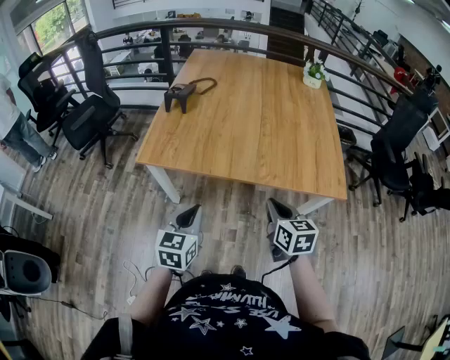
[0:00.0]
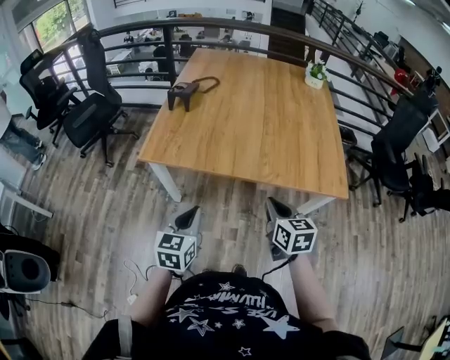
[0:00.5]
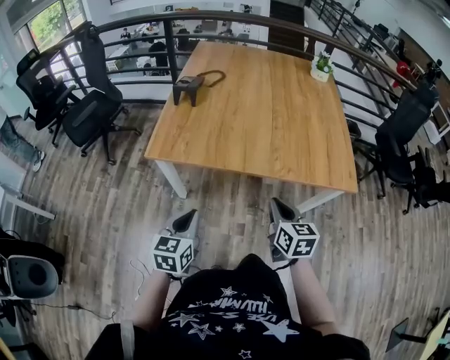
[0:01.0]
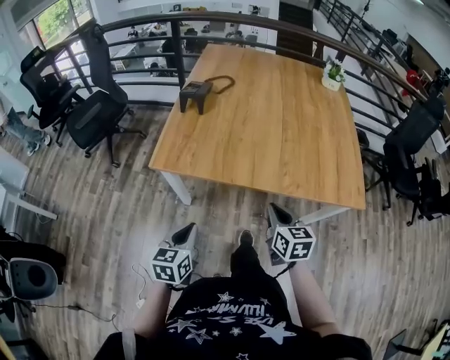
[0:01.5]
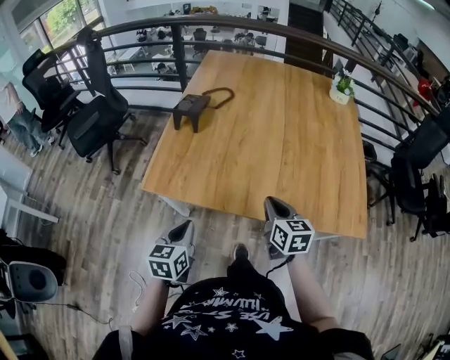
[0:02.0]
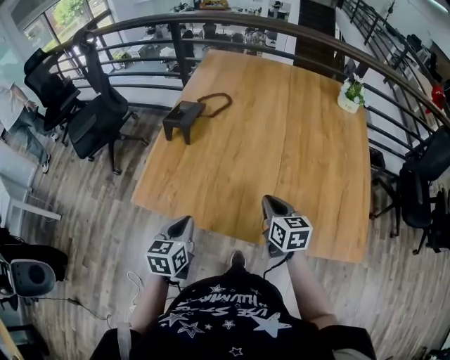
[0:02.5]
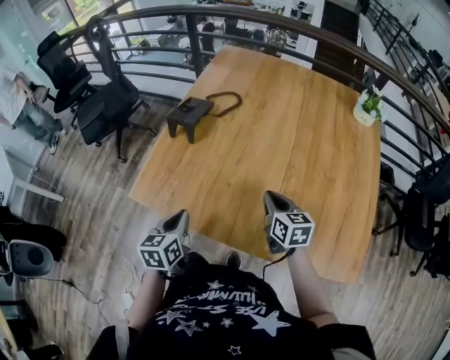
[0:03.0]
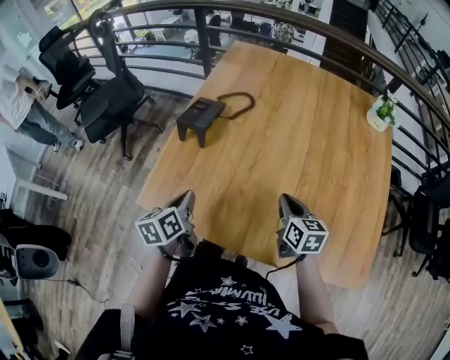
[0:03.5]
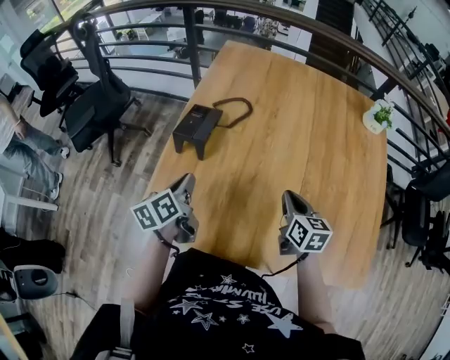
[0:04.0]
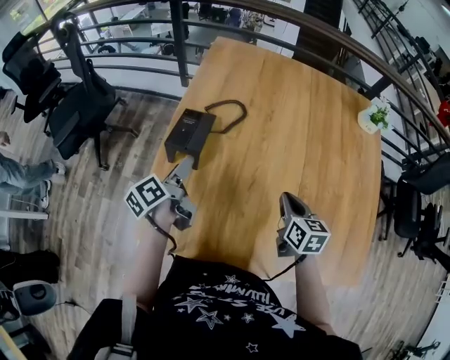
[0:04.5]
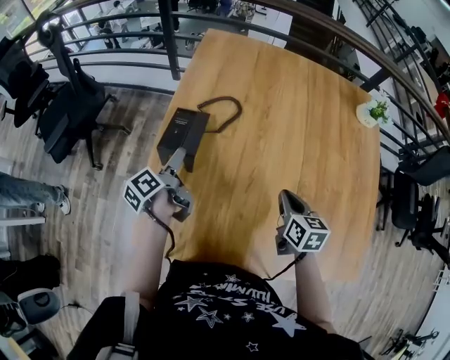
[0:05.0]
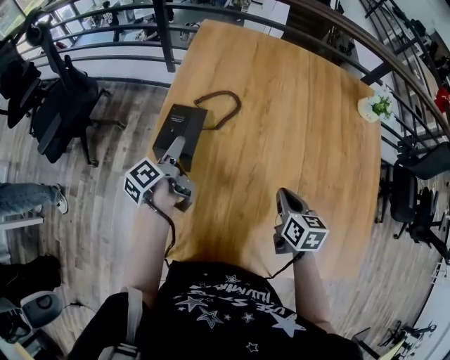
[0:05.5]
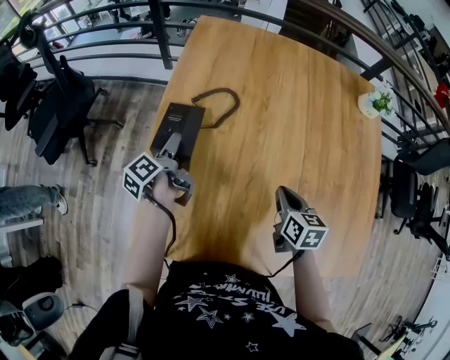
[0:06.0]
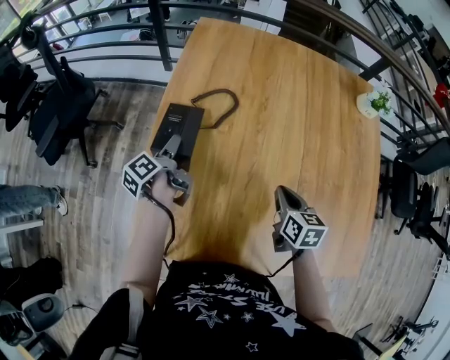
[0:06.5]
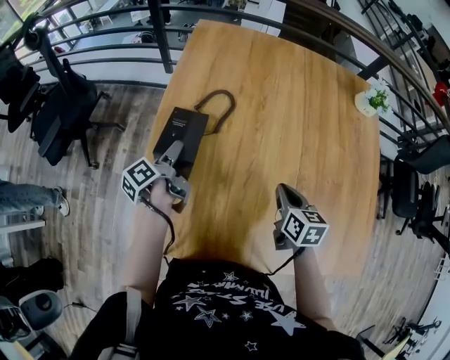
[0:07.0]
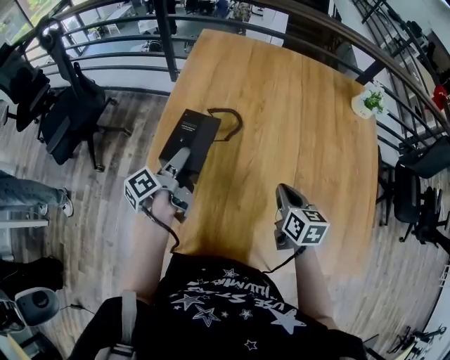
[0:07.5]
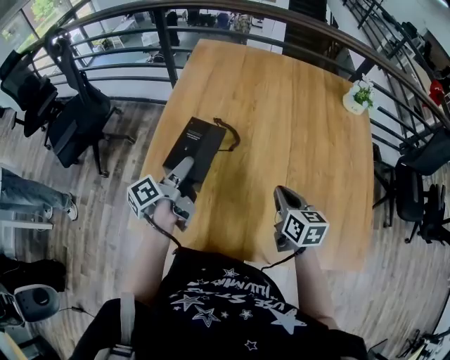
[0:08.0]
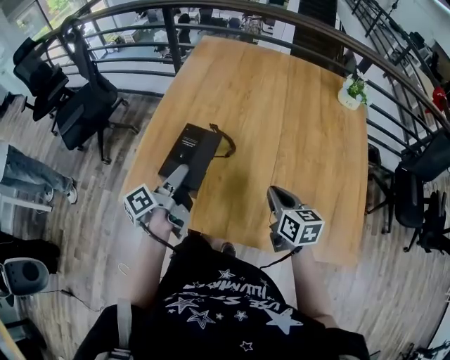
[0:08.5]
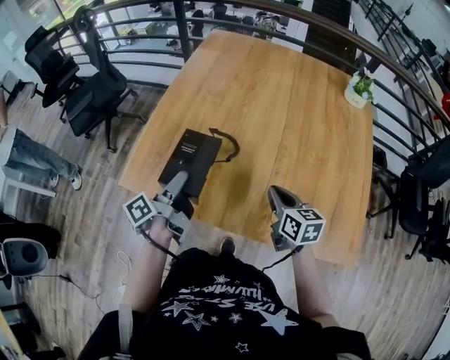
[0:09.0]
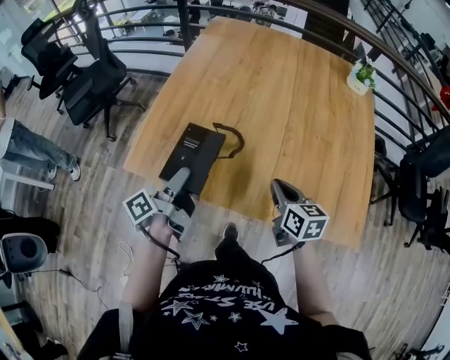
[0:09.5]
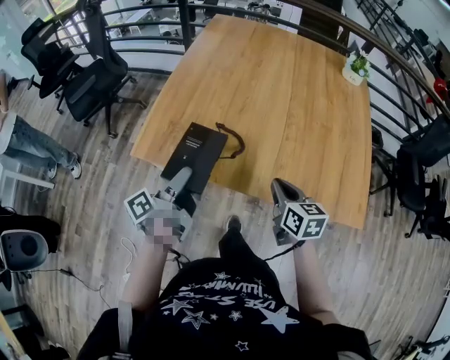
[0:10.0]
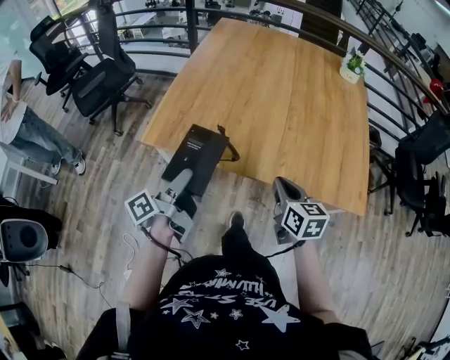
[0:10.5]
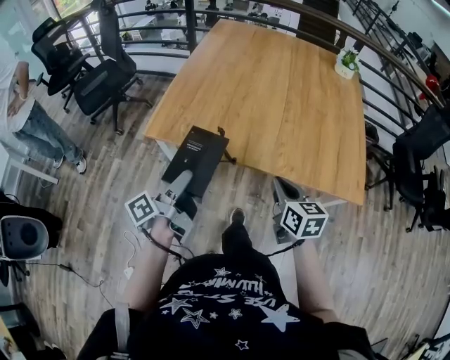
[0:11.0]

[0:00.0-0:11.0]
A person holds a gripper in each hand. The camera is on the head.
0.0 to 2.0 s: The right gripper travels forward by roughly 20 cm; the left gripper moves forward, to the left and downward, about 15 cm.
2.0 to 3.5 s: The grippers both shift forward by roughly 20 cm. The left gripper changes its angle by some 30 degrees.
3.5 to 5.5 s: The right gripper travels forward by approximately 10 cm, while the left gripper shifts some 25 cm forward, rotates approximately 40 degrees, and opens up.
5.5 to 7.5 s: The left gripper goes about 5 cm backward, and closes its fingers.
7.5 to 9.0 s: The left gripper is displaced backward by roughly 25 cm. Meanwhile the right gripper shifts approximately 15 cm backward.
9.0 to 11.0 s: Both grippers move backward, roughly 25 cm.

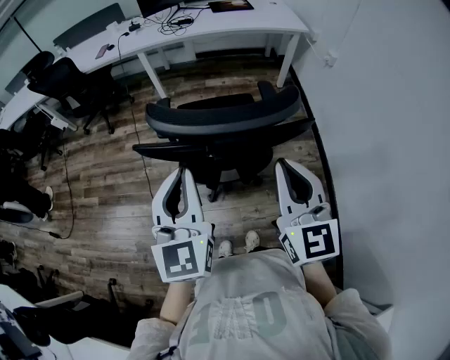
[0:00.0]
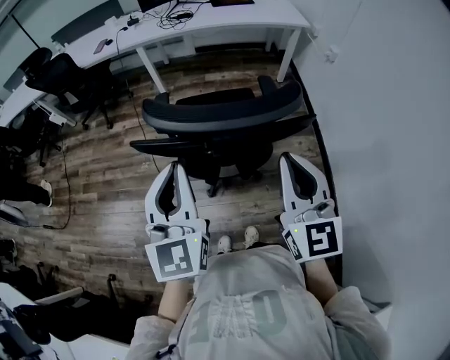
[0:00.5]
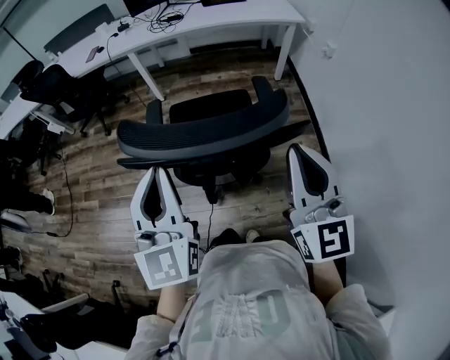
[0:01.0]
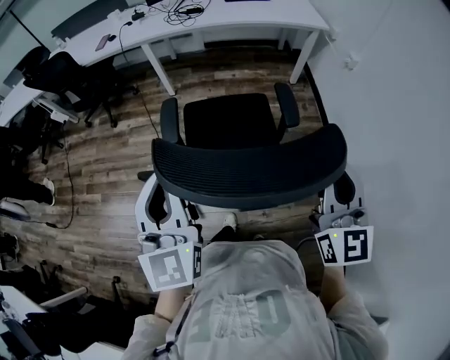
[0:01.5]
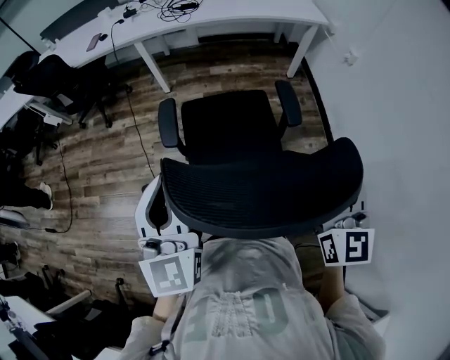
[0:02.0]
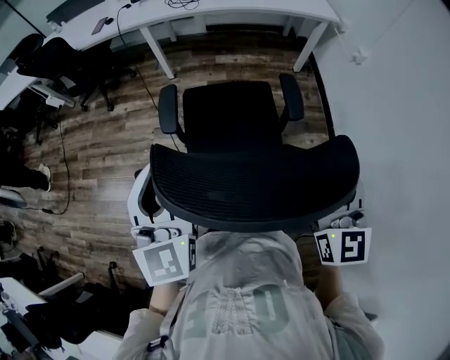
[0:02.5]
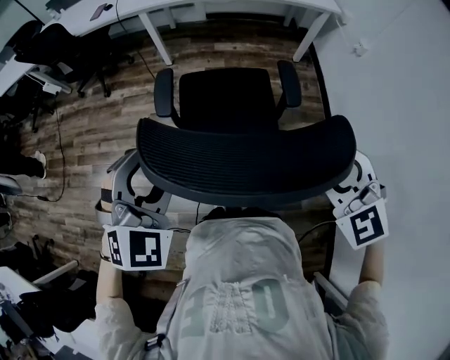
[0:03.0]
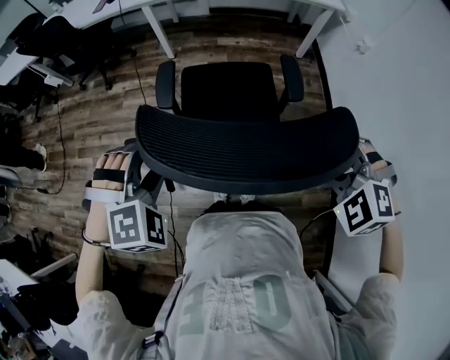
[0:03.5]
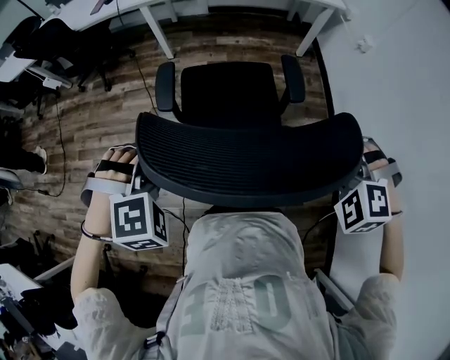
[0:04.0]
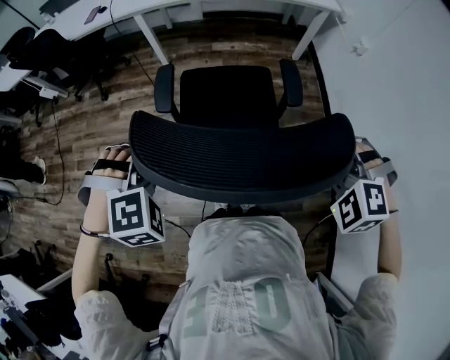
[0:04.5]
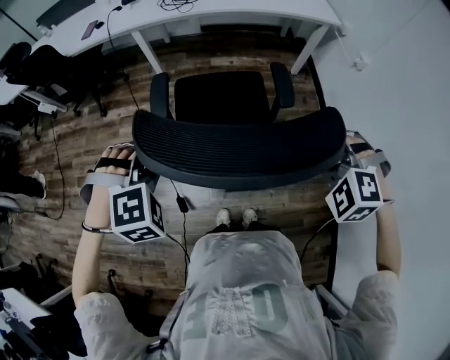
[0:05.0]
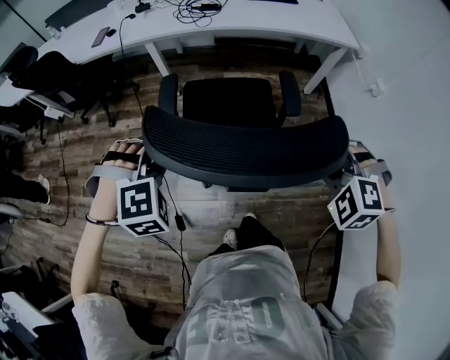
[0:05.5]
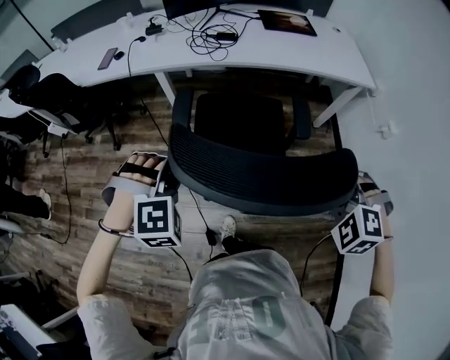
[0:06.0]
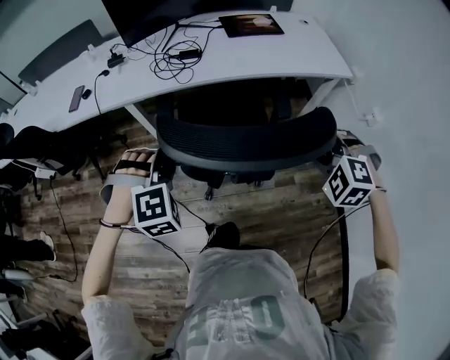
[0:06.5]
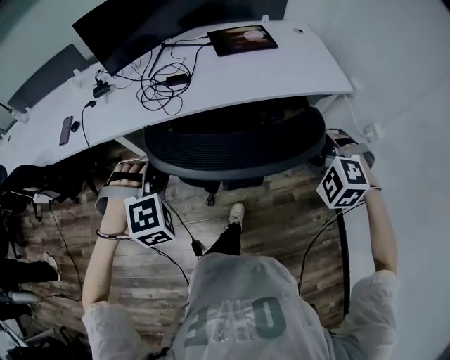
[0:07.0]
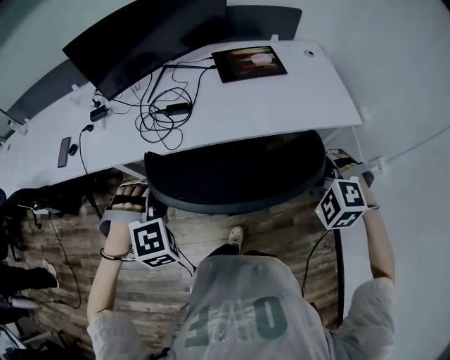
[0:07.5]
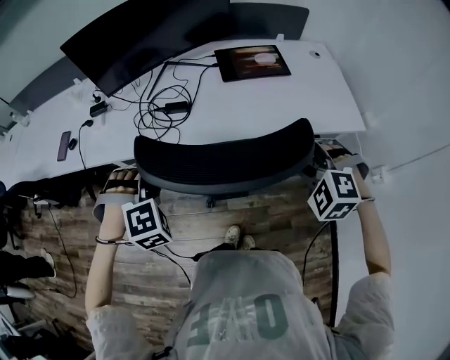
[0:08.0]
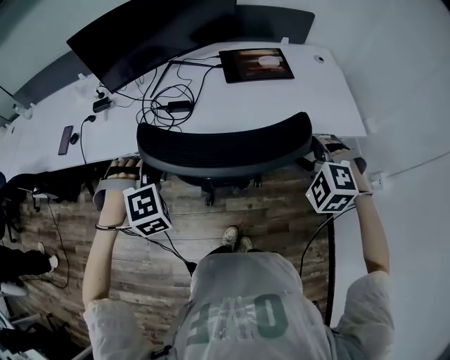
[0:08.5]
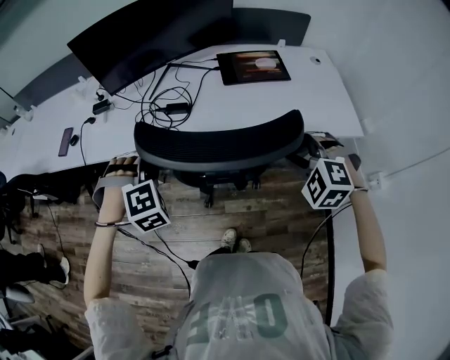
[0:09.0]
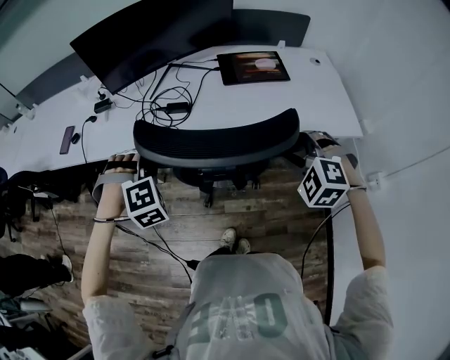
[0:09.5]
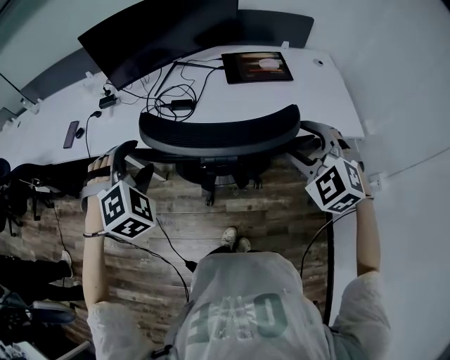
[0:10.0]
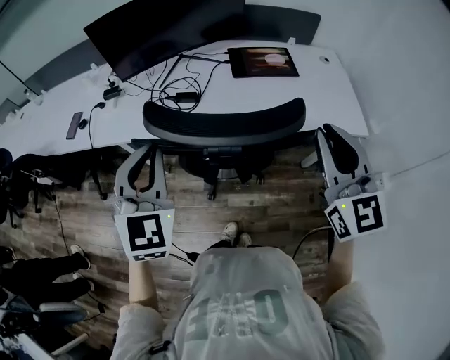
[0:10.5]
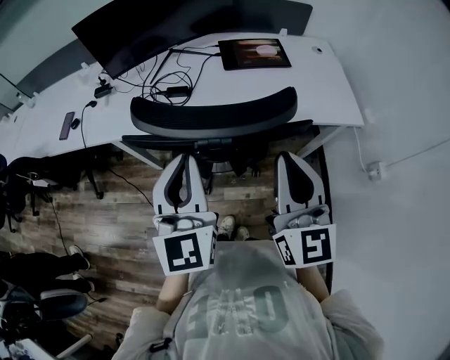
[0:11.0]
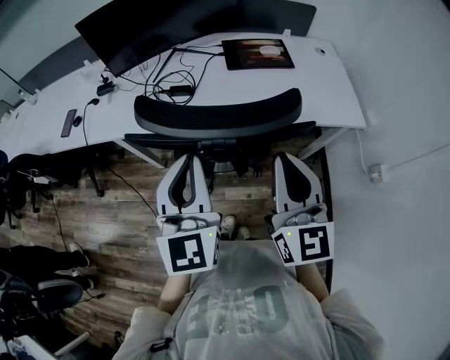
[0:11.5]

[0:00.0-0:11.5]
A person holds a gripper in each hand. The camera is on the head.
0.0 to 2.0 s: The left gripper goes about 15 cm forward and to the left; the right gripper moves forward and to the right, about 15 cm.
2.0 to 4.0 s: Both grippers travel together downward, some 10 cm. The right gripper tips its fingers downward by roughly 50 degrees, and opens. Meanwhile the left gripper angles its fingers downward, by about 60 degrees, and opens up.
4.0 to 6.0 s: Both grippers travel together forward, approximately 35 cm.
6.0 to 7.5 s: Both grippers travel together forward, about 35 cm.
7.5 to 9.5 s: Both grippers travel together forward, approximately 5 cm.
9.5 to 11.5 s: The right gripper moves upward, backward and to the left, approximately 20 cm, angles its fingers upward, by approximately 50 degrees, and closes. Meanwhile the left gripper travels upward, backward and to the right by about 20 cm, rotates around the line of its fingers by some 80 degrees, counterclockwise from behind, and closes up.

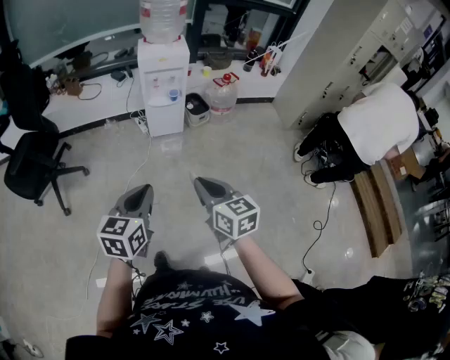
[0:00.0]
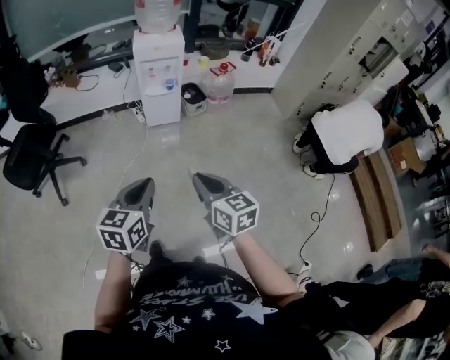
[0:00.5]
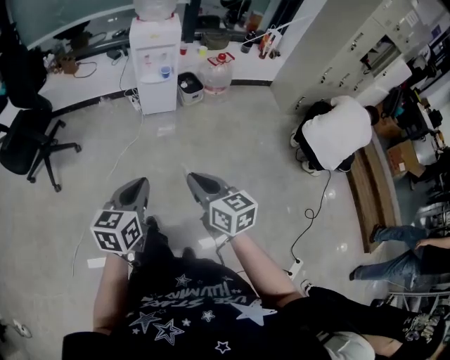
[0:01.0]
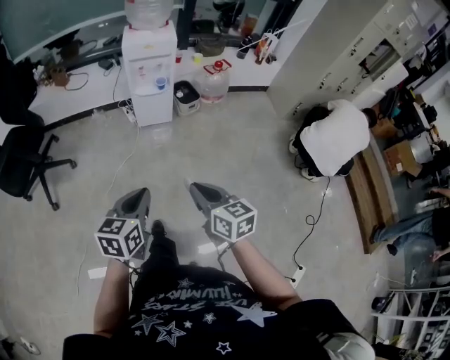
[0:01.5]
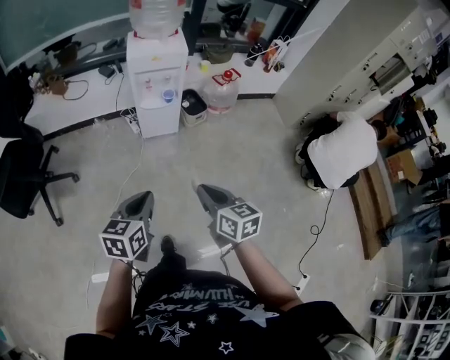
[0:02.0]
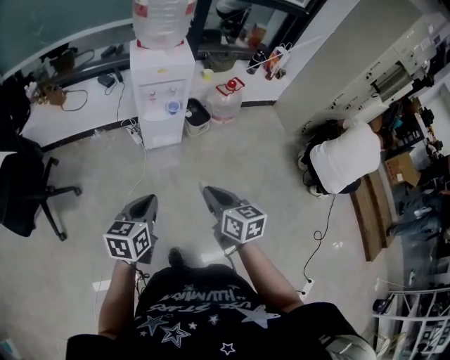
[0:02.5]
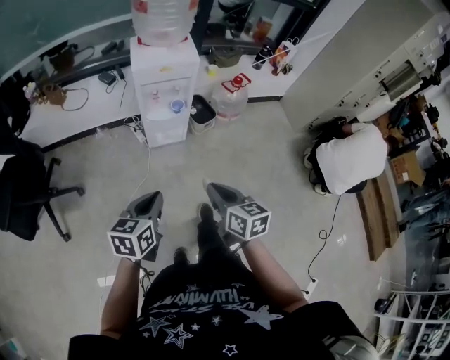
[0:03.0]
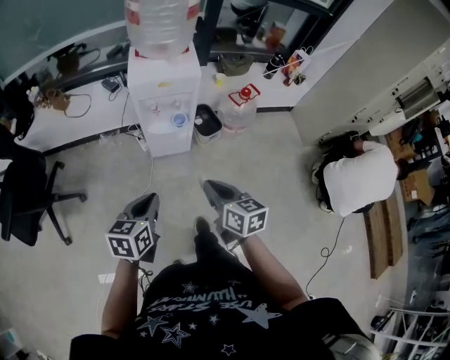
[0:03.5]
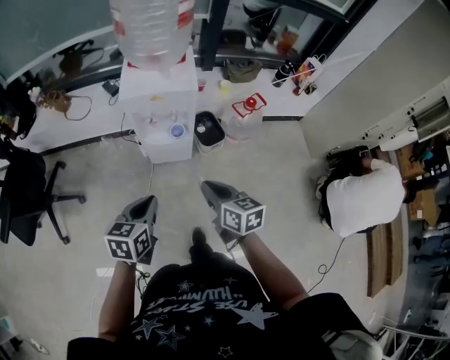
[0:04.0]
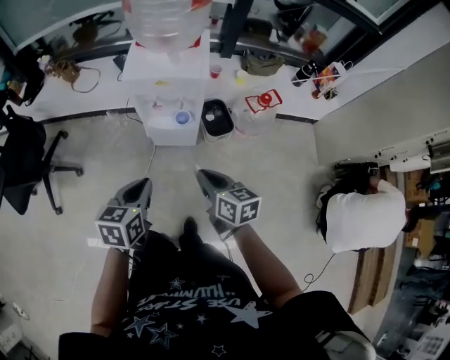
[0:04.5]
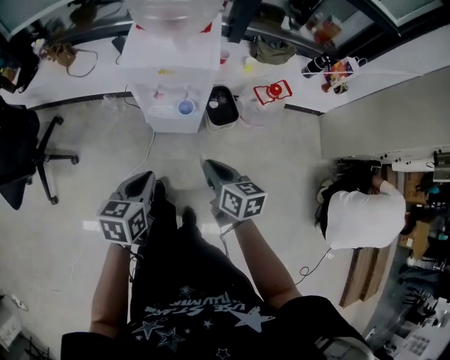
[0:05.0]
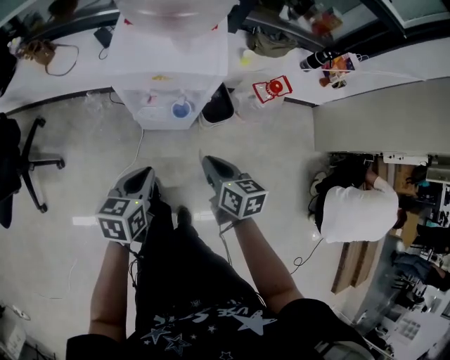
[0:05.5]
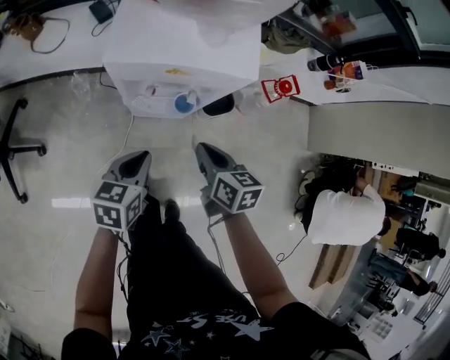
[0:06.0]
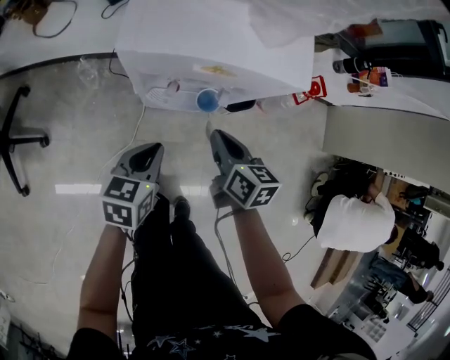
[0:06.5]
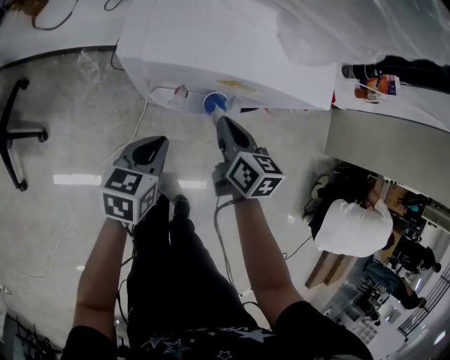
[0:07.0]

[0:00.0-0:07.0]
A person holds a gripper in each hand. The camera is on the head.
0.0 to 2.0 s: Both grippers move forward and downward, approximately 15 cm.
2.0 to 3.5 s: Both grippers move forward, some 25 cm.
3.5 to 5.0 s: The left gripper travels forward, to the right and downward by about 20 cm, while the right gripper travels forward and downward by about 20 cm.
5.0 to 7.0 s: The left gripper is displaced downward and forward by some 30 cm; the right gripper moves forward and downward, some 30 cm.
